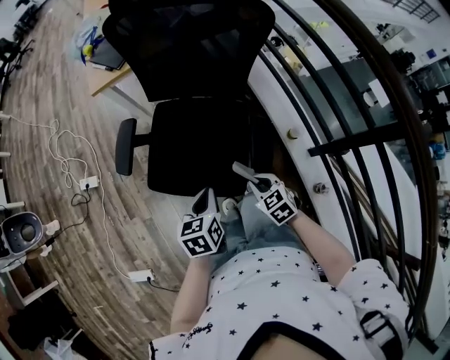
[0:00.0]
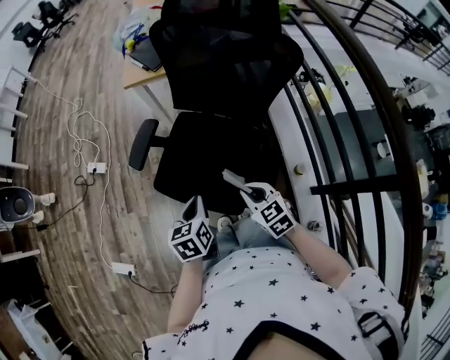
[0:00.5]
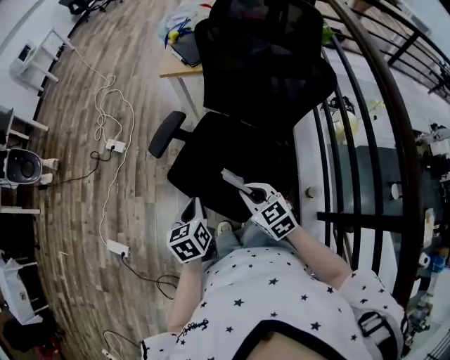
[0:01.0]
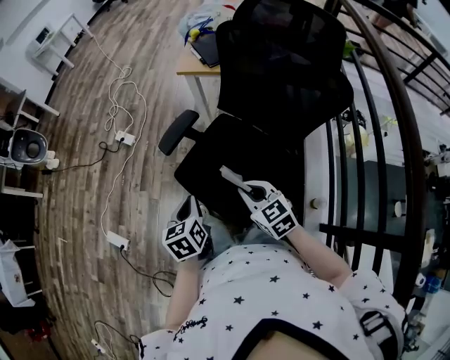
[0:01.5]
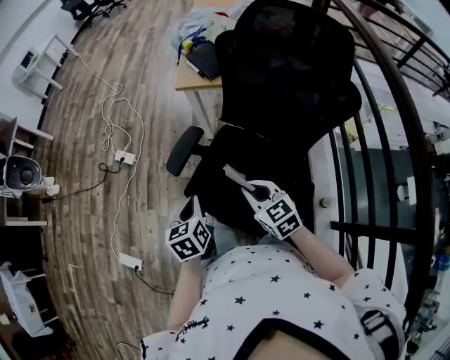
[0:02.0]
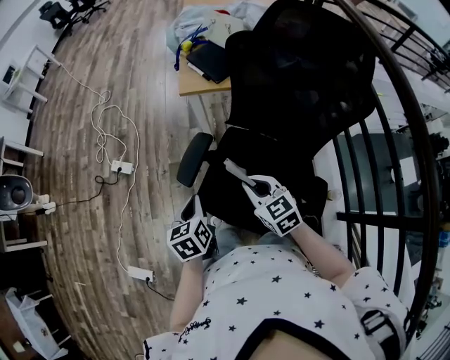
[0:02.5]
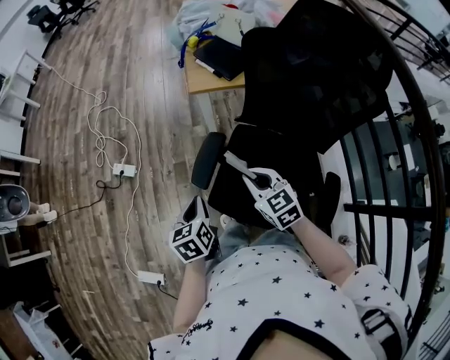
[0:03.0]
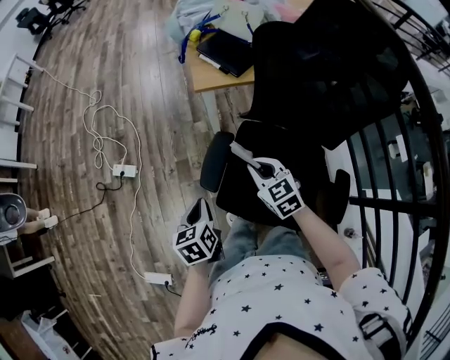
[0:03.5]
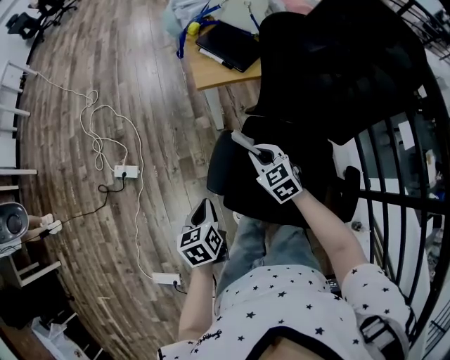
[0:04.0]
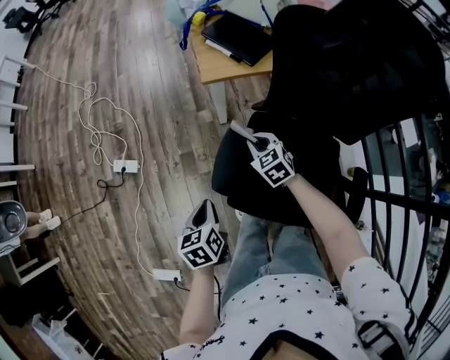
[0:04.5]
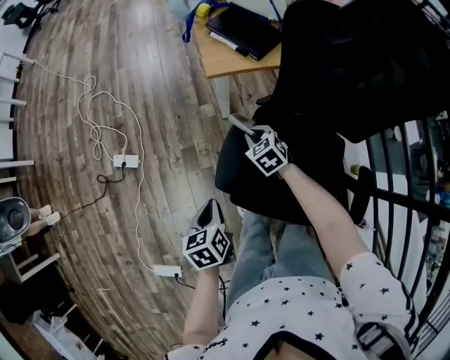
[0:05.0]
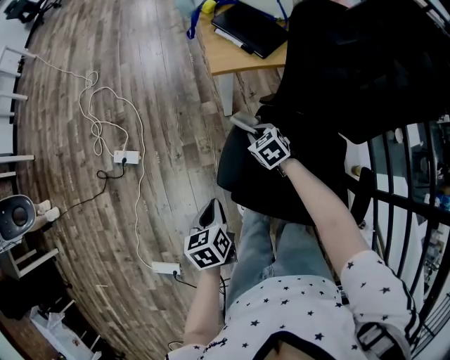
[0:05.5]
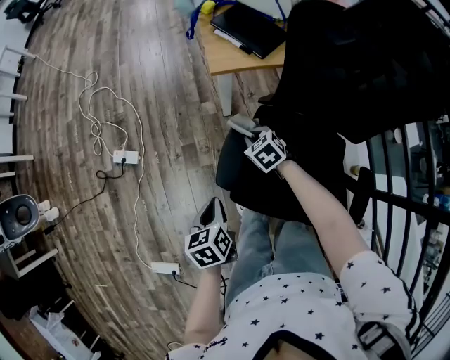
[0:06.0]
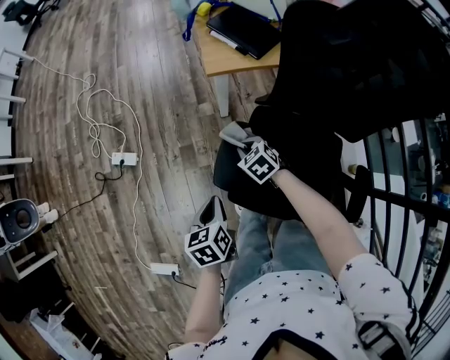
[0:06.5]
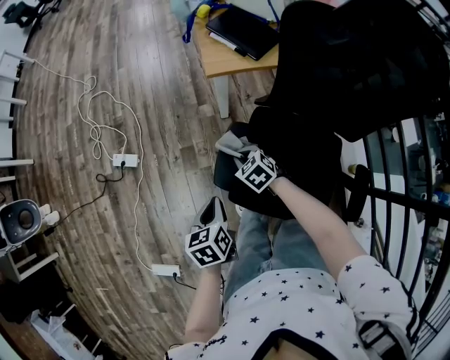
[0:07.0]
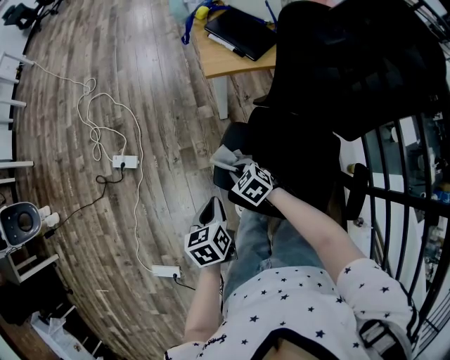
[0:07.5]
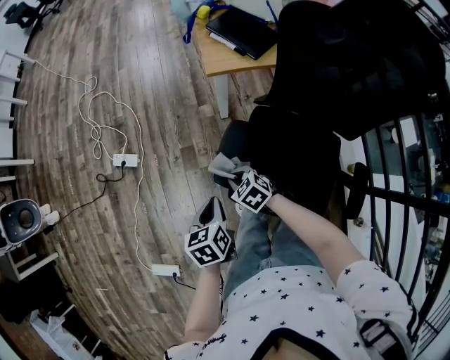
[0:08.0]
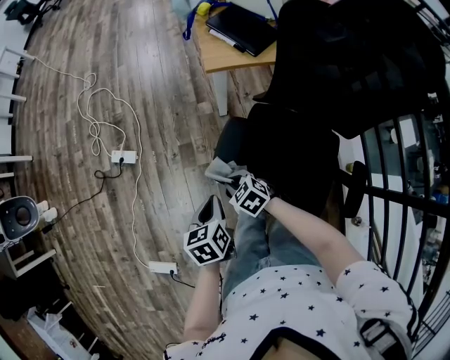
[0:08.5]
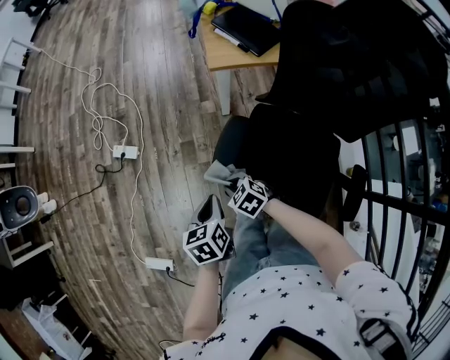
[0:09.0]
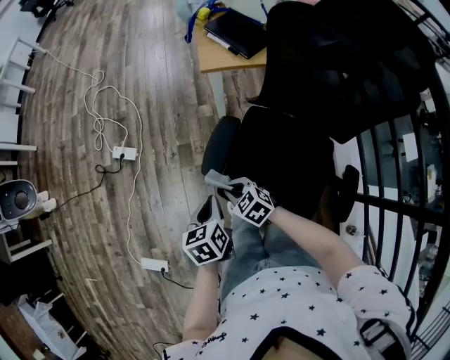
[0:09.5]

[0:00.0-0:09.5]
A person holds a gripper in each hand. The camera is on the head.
0:00.0 to 0:02.0: The right gripper ends up approximately 25 cm from where it was, and swivels about 30 degrees. The left gripper changes place by roughly 20 cm, and rotates some 30 degrees.
0:02.0 to 0:04.0: The two grippers go about 25 cm forward, to the left and downward.
0:04.0 to 0:05.5: The right gripper moves downward and forward, some 15 cm.
0:05.5 to 0:07.5: The right gripper goes some 15 cm backward and to the left.
0:07.5 to 0:09.5: The left gripper travels backward by about 5 cm. Meanwhile the right gripper heads backward, covering roughly 10 cm.

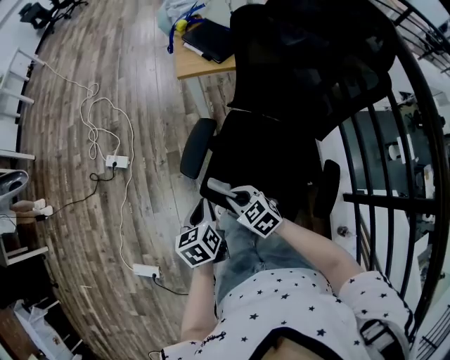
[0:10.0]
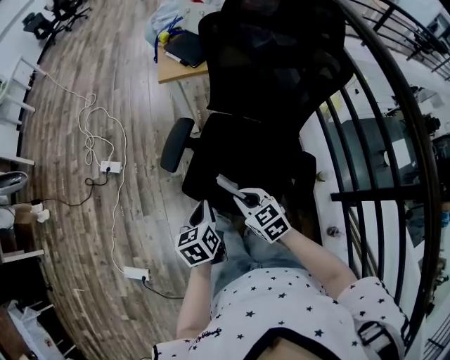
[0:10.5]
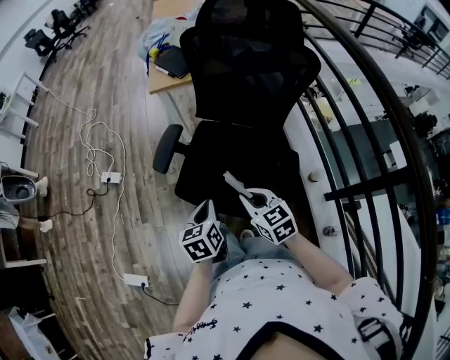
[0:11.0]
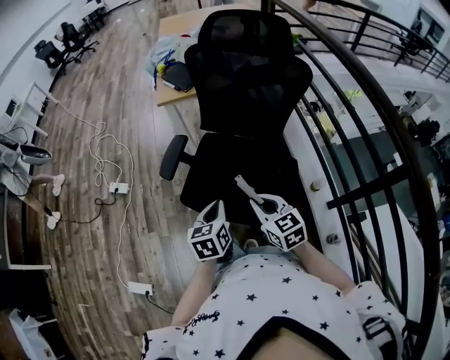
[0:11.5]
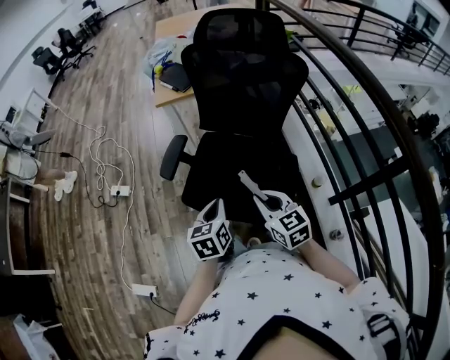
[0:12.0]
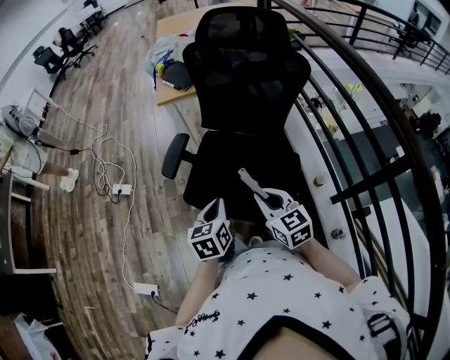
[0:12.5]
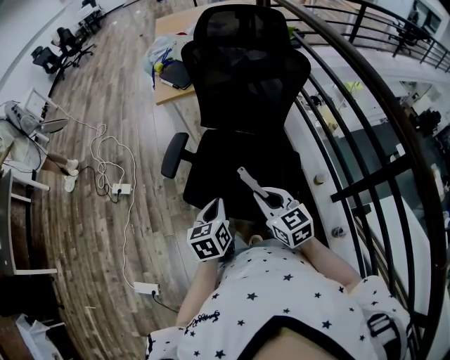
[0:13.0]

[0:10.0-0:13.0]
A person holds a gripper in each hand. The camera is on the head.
0:10.0 to 0:11.5: The left gripper shifts roughly 25 cm backward, to the right and upward; the right gripper goes about 30 cm to the right, backward and upward, and changes its angle by approximately 30 degrees.
0:11.5 to 0:13.0: There are only small adjustments of the grippers.

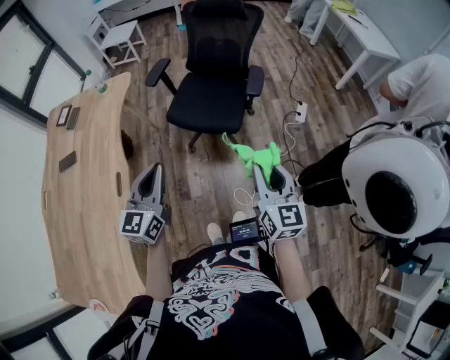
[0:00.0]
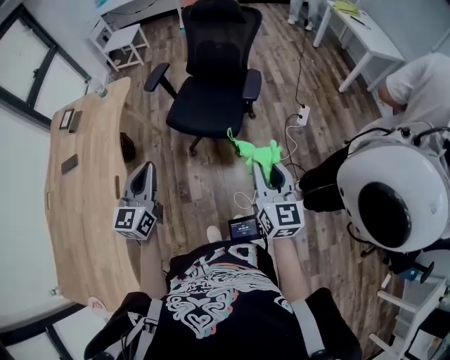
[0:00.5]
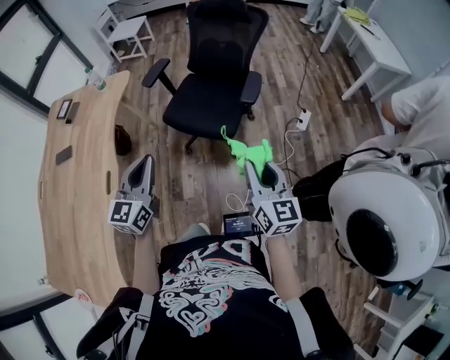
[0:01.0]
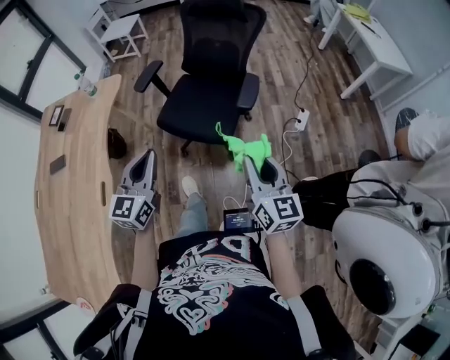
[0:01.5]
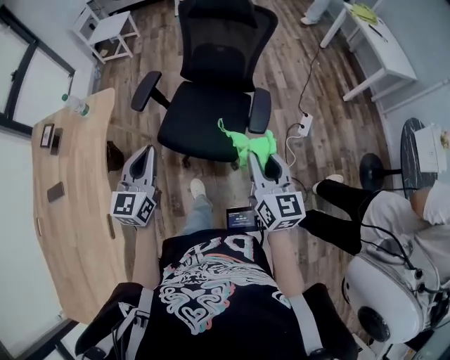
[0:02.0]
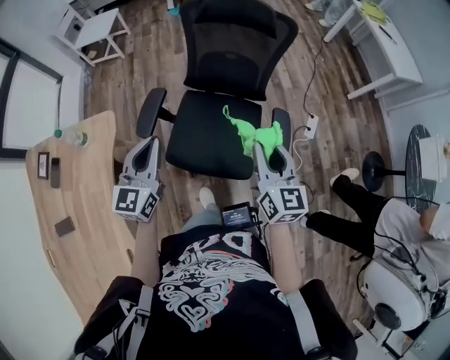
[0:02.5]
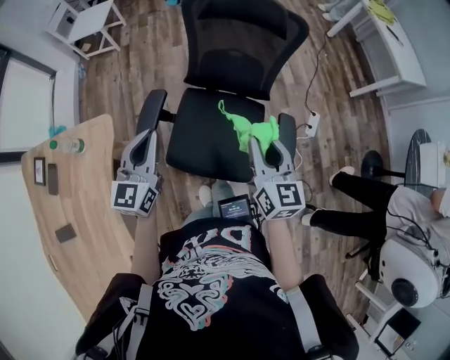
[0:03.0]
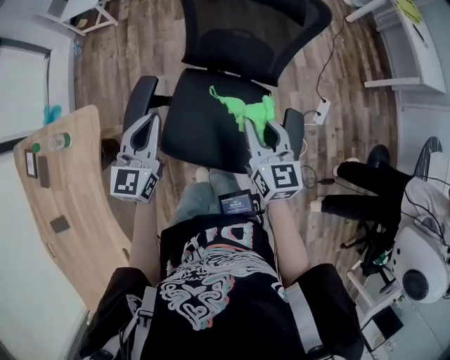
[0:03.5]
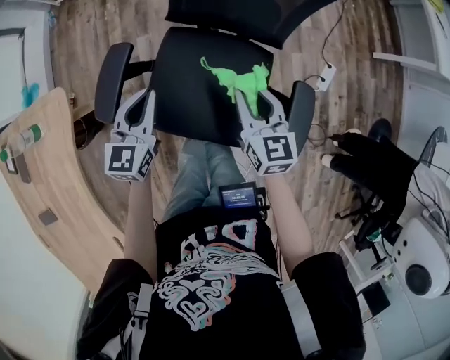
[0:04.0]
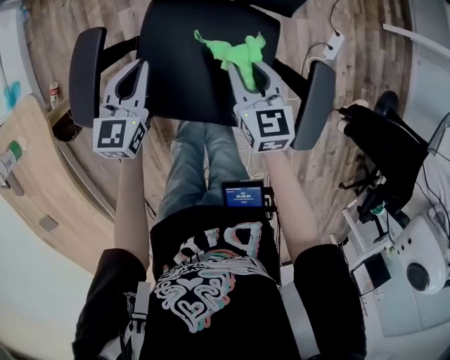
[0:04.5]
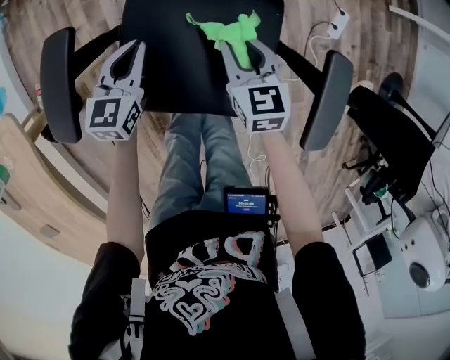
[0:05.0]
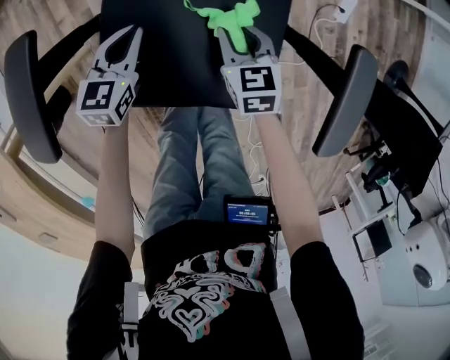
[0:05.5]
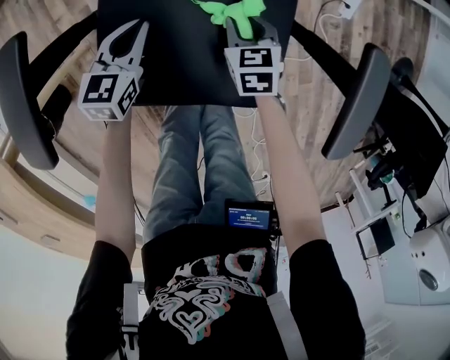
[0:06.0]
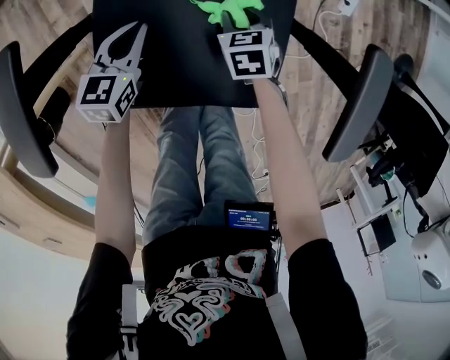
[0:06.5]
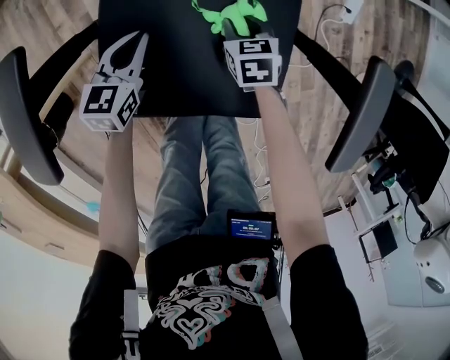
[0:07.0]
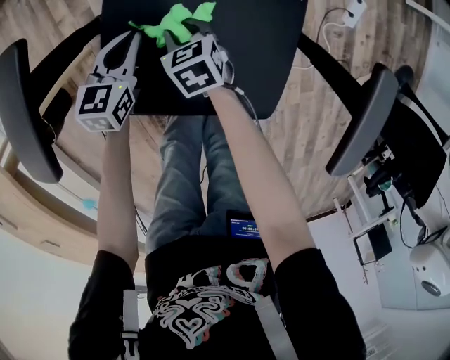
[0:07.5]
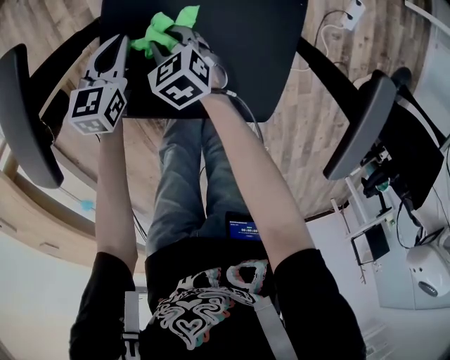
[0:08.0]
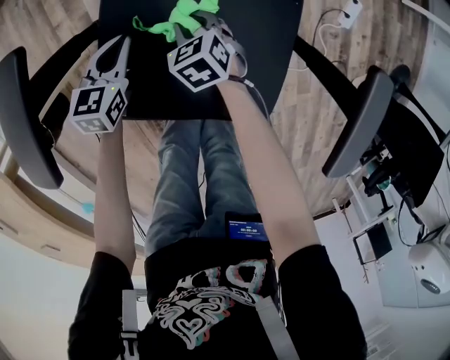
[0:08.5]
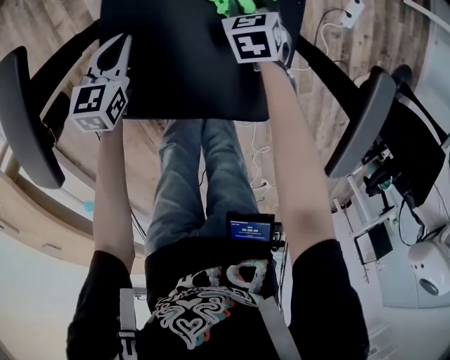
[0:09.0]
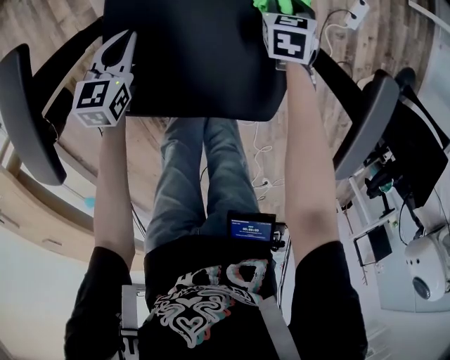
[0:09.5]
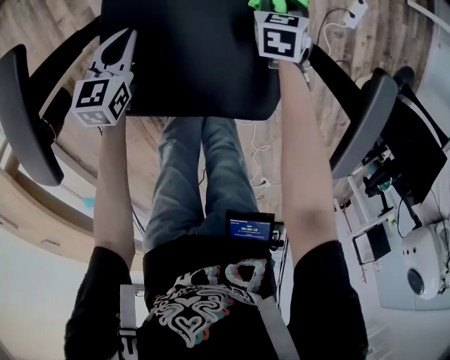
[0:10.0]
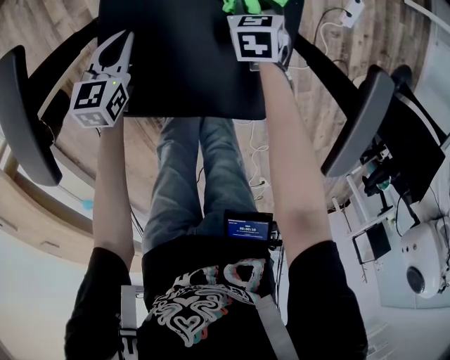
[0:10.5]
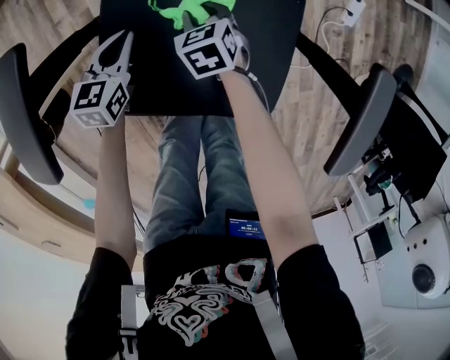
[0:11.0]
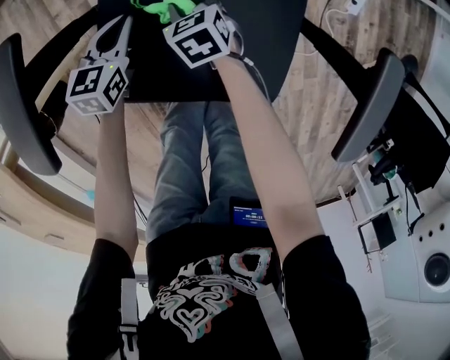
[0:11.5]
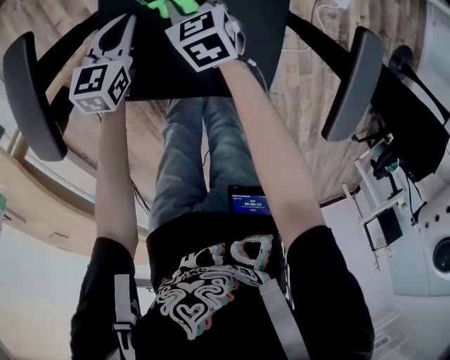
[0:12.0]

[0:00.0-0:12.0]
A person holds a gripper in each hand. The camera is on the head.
0:00.0 to 0:02.0: Both grippers travel together forward, approximately 30 cm.
0:02.0 to 0:04.0: Both grippers move forward and downward, approximately 40 cm.
0:04.0 to 0:06.0: The two grippers go about 30 cm downward. The left gripper turns by approximately 20 degrees. The right gripper tips its fingers downward by roughly 30 degrees.
0:06.0 to 0:08.0: The left gripper travels to the left by some 5 cm, while the right gripper moves to the left, some 20 cm, and rotates some 20 degrees.
0:08.0 to 0:10.0: The right gripper shifts by approximately 30 cm, and turns by approximately 30 degrees.
0:10.0 to 0:12.0: The right gripper moves roughly 20 cm, and rotates approximately 30 degrees.

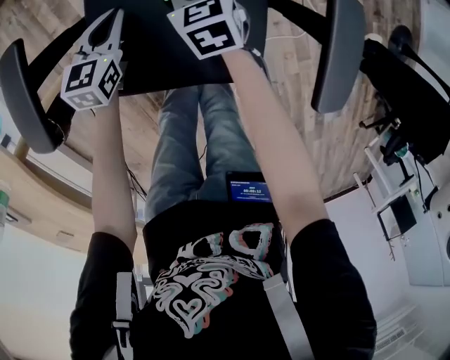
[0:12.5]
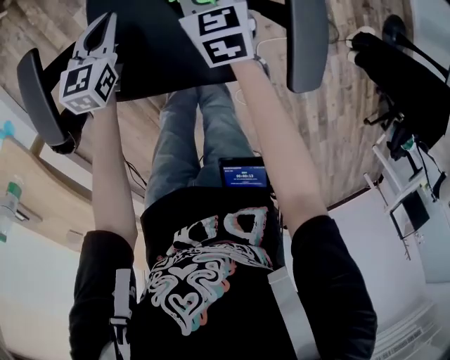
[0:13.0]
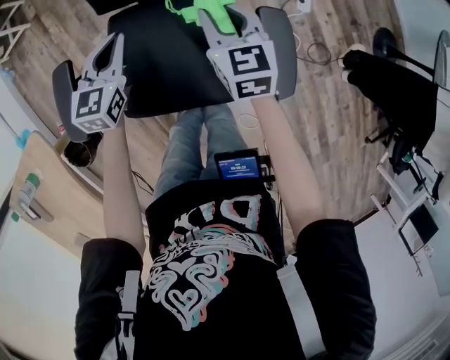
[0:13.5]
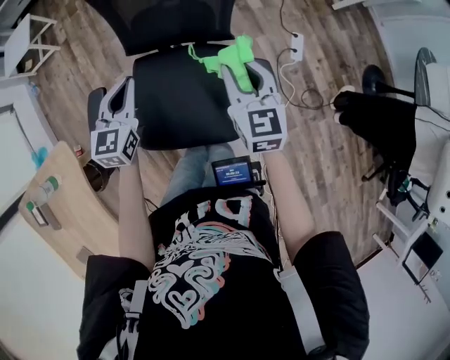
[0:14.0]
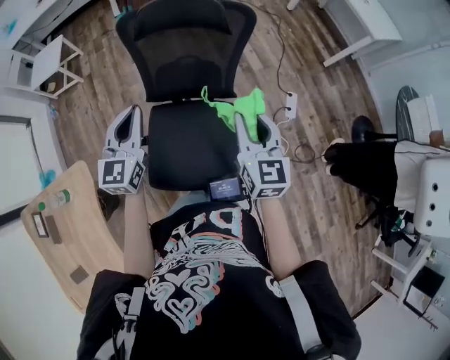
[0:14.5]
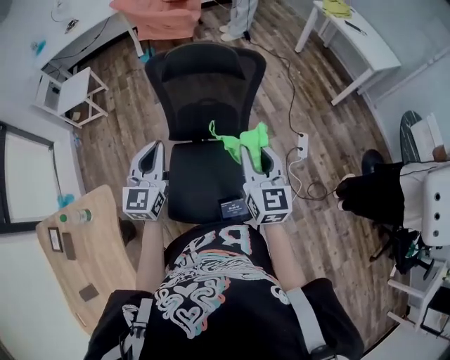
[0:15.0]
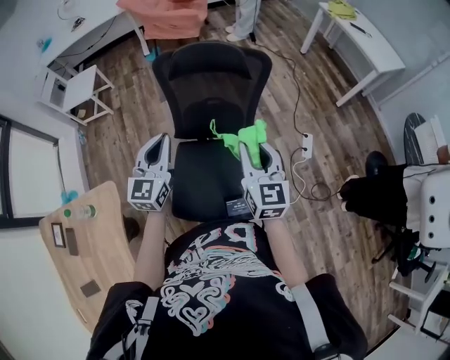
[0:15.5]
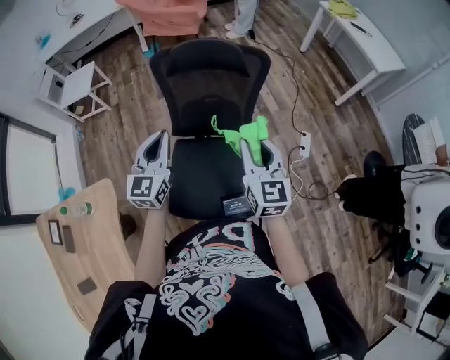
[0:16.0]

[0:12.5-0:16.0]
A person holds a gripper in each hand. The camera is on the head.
0:12.5 to 0:14.5: Both grippers move upward, some 50 cm. The left gripper swivels roughly 30 degrees. Meanwhile the right gripper tilts its fingers roughly 30 degrees upward.
0:14.5 to 0:16.0: The right gripper changes place by some 5 cm.
